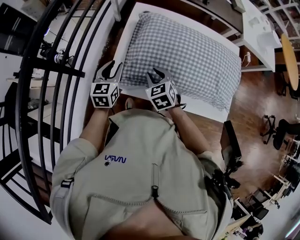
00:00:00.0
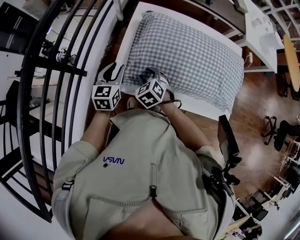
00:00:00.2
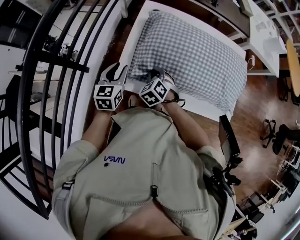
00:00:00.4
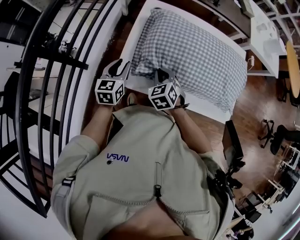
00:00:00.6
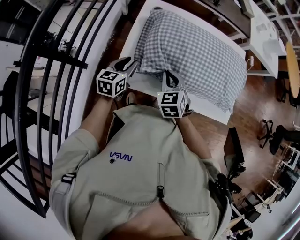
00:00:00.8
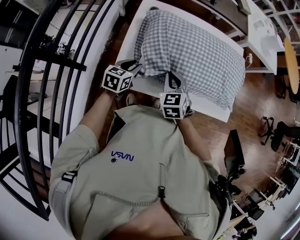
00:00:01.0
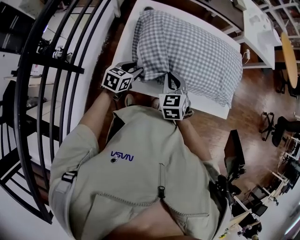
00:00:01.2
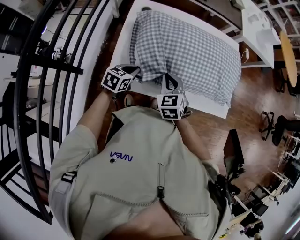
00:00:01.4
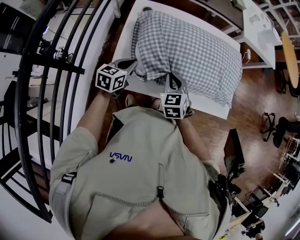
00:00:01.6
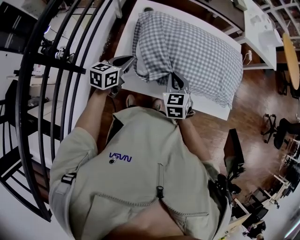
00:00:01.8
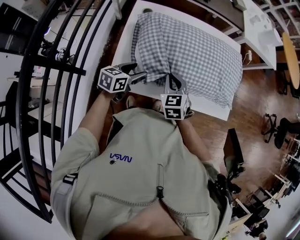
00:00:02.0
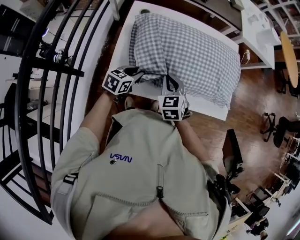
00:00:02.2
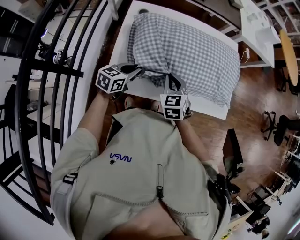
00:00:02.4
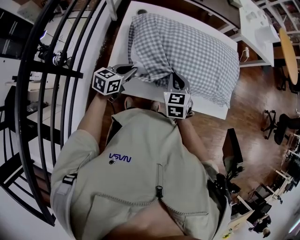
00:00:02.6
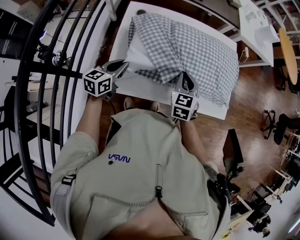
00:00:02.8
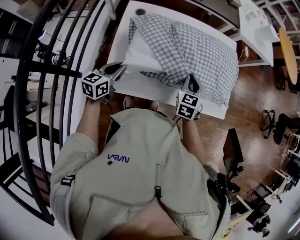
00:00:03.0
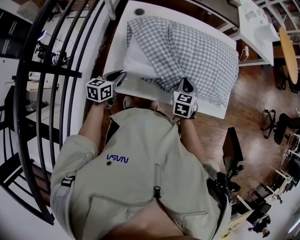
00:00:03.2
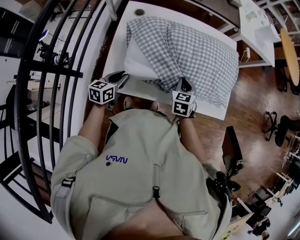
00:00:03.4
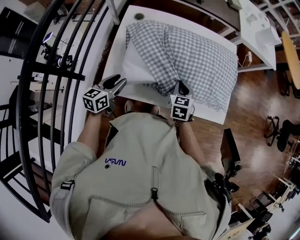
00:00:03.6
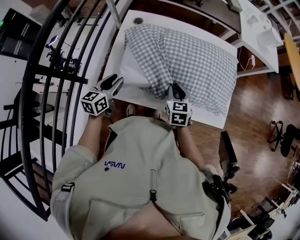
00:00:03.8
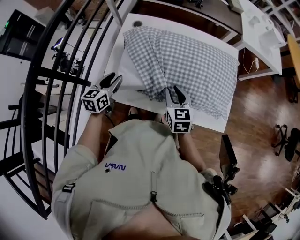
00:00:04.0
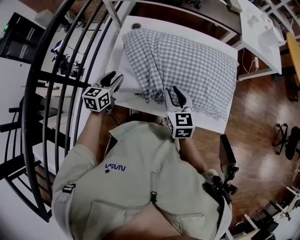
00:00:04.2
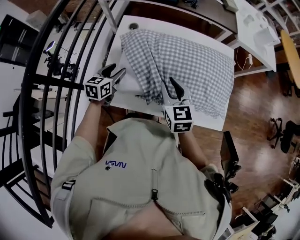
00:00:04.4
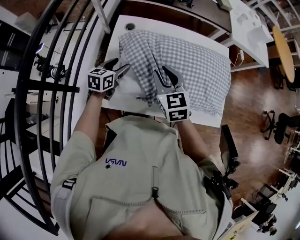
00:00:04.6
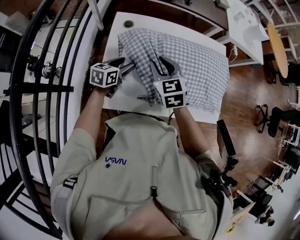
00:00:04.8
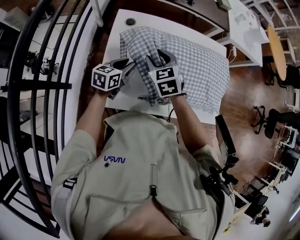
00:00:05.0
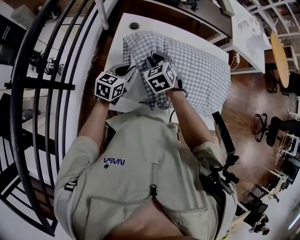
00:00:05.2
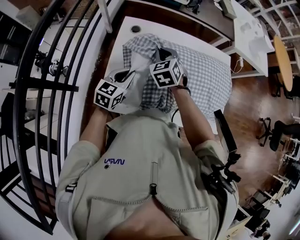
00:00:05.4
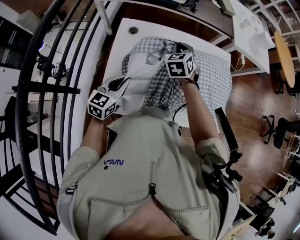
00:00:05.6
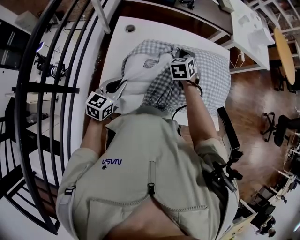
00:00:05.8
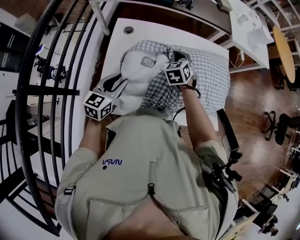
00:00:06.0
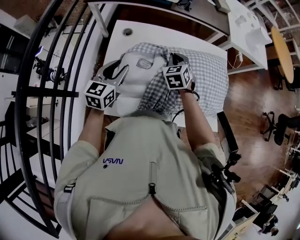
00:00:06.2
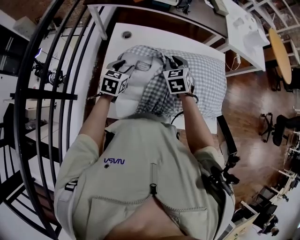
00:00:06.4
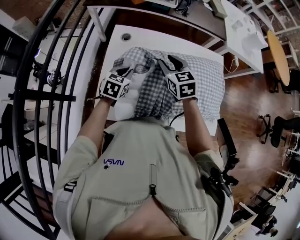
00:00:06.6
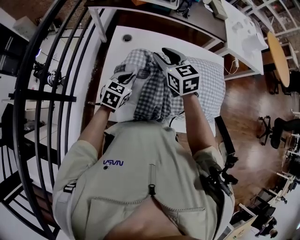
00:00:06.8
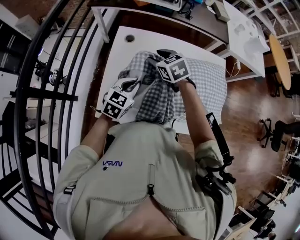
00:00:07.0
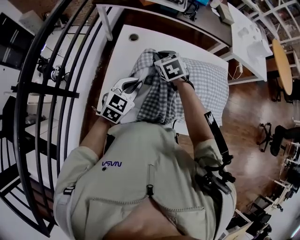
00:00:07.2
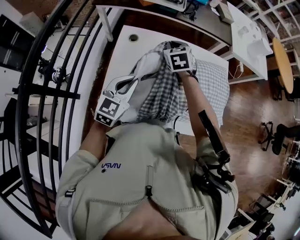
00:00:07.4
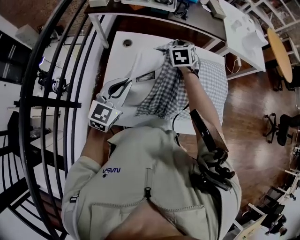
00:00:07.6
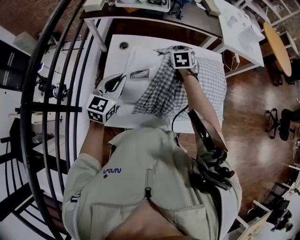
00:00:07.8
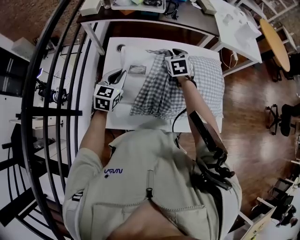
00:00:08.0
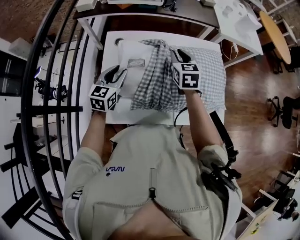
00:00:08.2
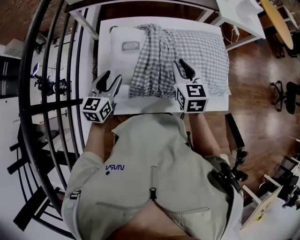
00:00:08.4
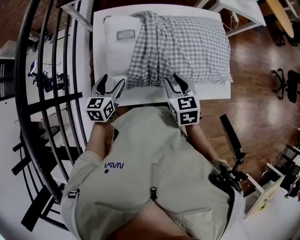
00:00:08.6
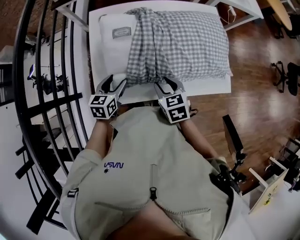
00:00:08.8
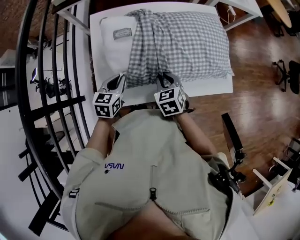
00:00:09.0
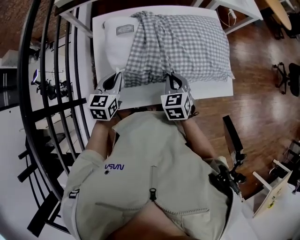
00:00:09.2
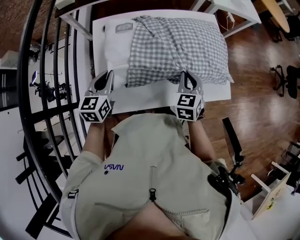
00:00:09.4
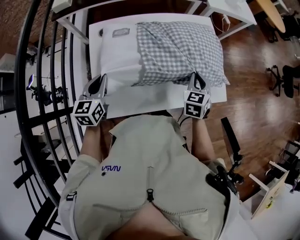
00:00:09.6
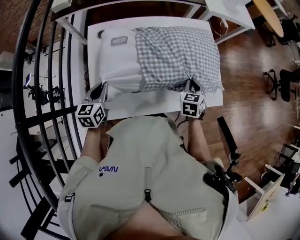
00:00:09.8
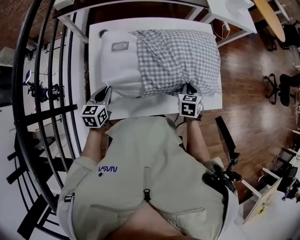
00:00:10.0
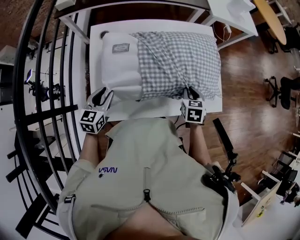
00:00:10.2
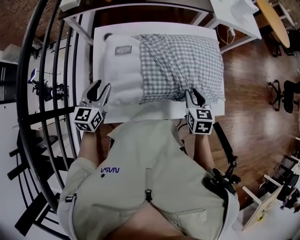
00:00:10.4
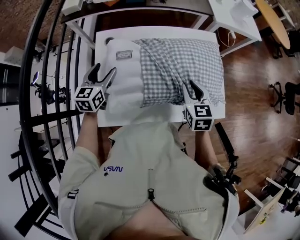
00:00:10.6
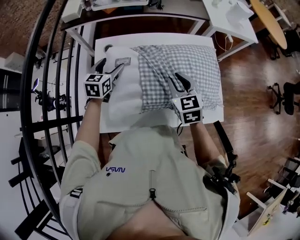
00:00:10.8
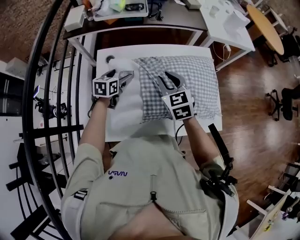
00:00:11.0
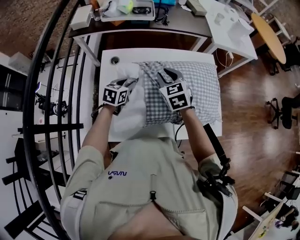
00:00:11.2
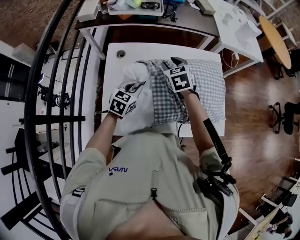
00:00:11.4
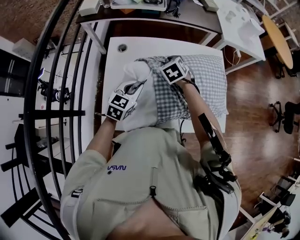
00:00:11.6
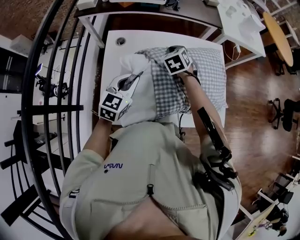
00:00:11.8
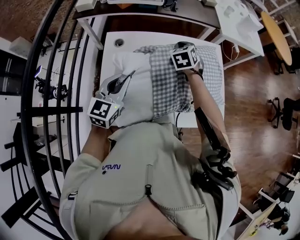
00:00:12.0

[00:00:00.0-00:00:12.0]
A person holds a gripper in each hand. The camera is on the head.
00:00:00.0 to 00:00:01.6: The left gripper rotates about 30 degrees. The right gripper goes downward and returns, about 5 cm each way, and closes.
00:00:01.6 to 00:00:03.0: The left gripper opens, then closes once more; the right gripper travels to the right by approximately 10 cm.
00:00:03.0 to 00:00:04.4: The right gripper ends up some 10 cm from where it was, swivels approximately 30 degrees, and opens its fingers; the left gripper shifts by some 5 cm, and opens.
00:00:04.4 to 00:00:06.0: The left gripper is displaced upward by roughly 5 cm, and reaches some 5 cm forward, then returns; the right gripper travels forward by approximately 20 cm, swivels about 30 degrees, and closes.
00:00:06.0 to 00:00:07.6: The left gripper travels upward by approximately 10 cm, while the right gripper goes roughly 10 cm forward and upward, and opens and closes again.
00:00:07.6 to 00:00:09.0: The left gripper travels downward by roughly 15 cm, rotates approximately 30 degrees, and opens, then closes once more. The right gripper travels backward and downward by approximately 35 cm.
00:00:09.0 to 00:00:10.4: The left gripper goes up and down, approximately 10 cm each way, reversing 2 times, and opens its fingers. The right gripper goes roughly 15 cm to the right, upward and forward.
00:00:10.4 to 00:00:12.0: The left gripper travels upward and to the right by about 10 cm, moves some 15 cm forward and comes back, and closes up. The right gripper moves forward and to the left, roughly 25 cm, swivels some 30 degrees, and closes its fingers.

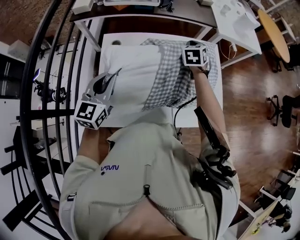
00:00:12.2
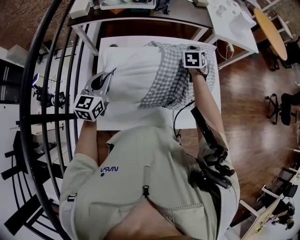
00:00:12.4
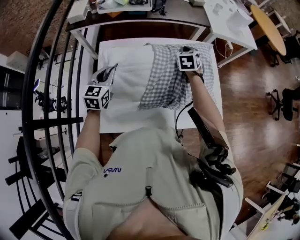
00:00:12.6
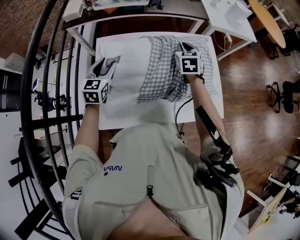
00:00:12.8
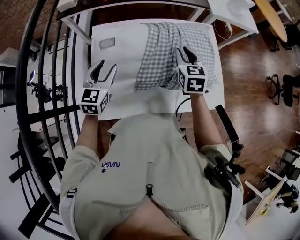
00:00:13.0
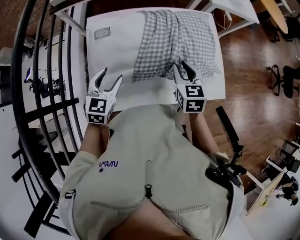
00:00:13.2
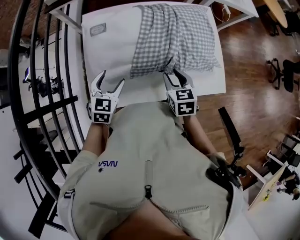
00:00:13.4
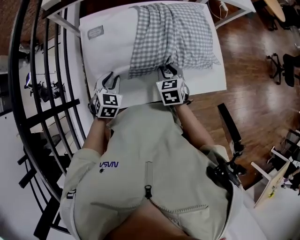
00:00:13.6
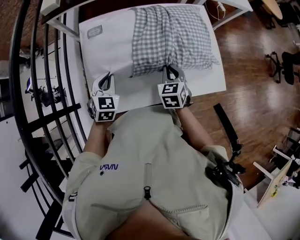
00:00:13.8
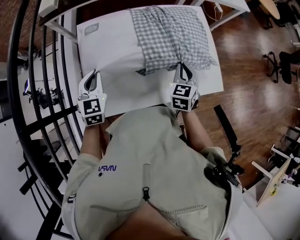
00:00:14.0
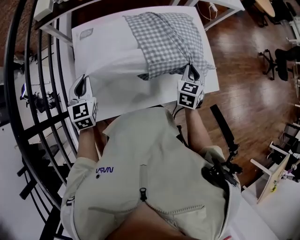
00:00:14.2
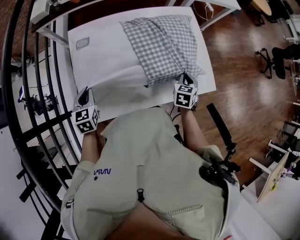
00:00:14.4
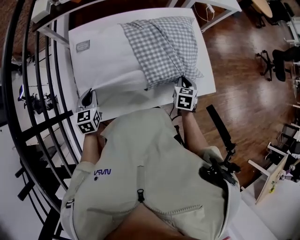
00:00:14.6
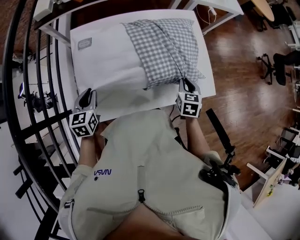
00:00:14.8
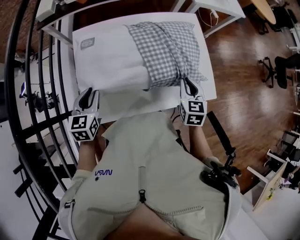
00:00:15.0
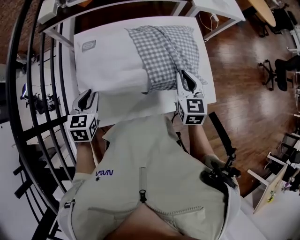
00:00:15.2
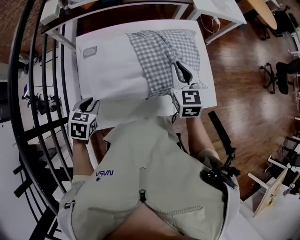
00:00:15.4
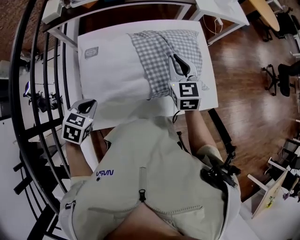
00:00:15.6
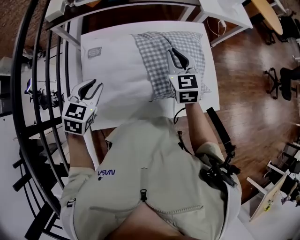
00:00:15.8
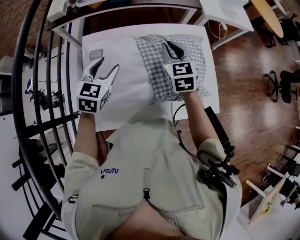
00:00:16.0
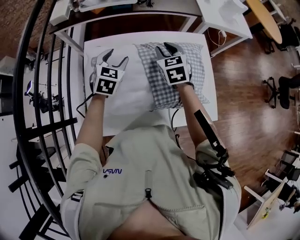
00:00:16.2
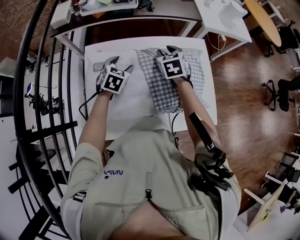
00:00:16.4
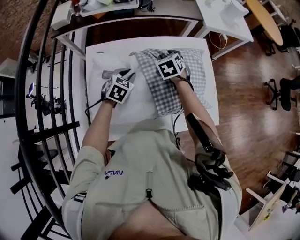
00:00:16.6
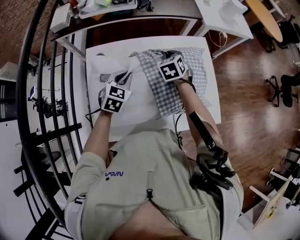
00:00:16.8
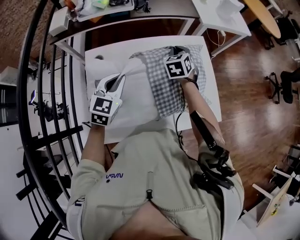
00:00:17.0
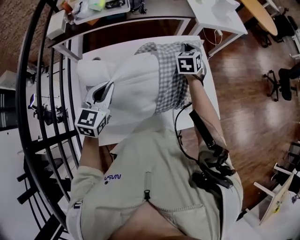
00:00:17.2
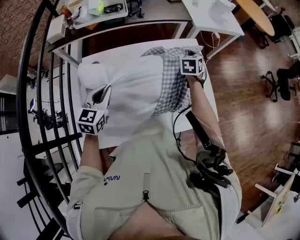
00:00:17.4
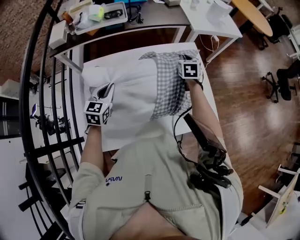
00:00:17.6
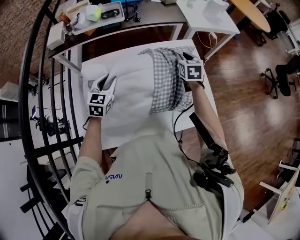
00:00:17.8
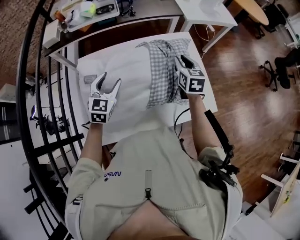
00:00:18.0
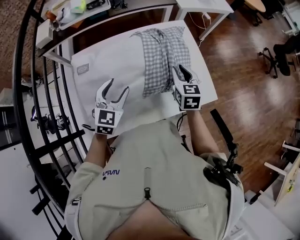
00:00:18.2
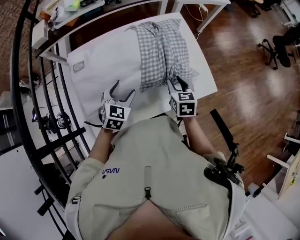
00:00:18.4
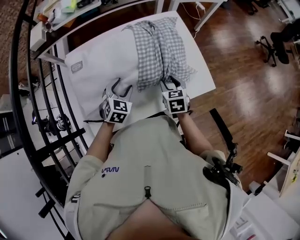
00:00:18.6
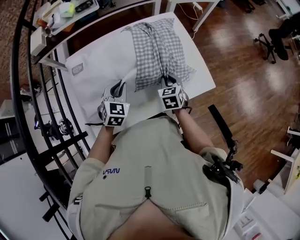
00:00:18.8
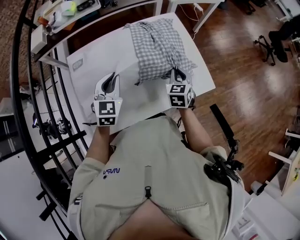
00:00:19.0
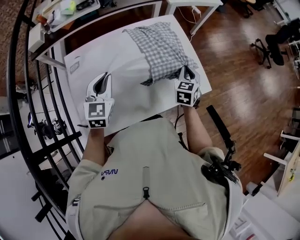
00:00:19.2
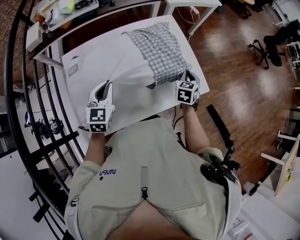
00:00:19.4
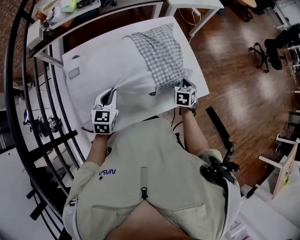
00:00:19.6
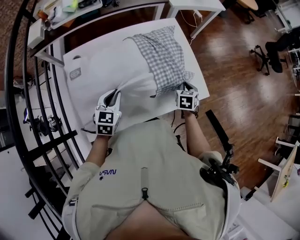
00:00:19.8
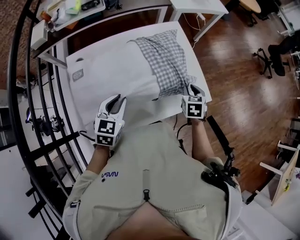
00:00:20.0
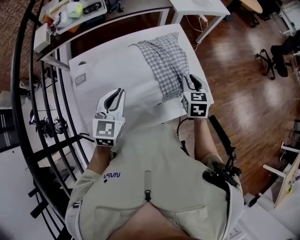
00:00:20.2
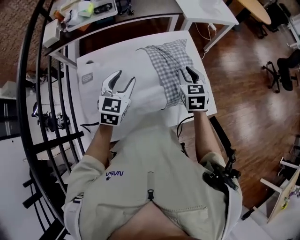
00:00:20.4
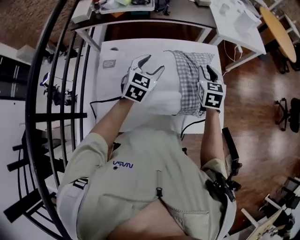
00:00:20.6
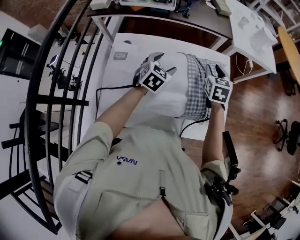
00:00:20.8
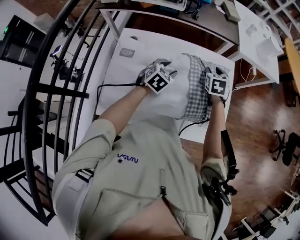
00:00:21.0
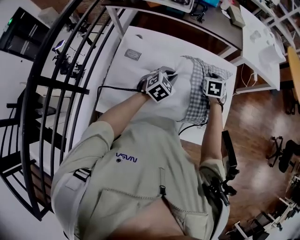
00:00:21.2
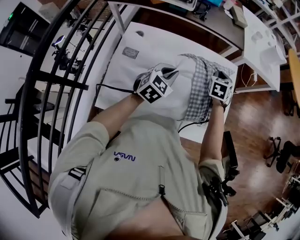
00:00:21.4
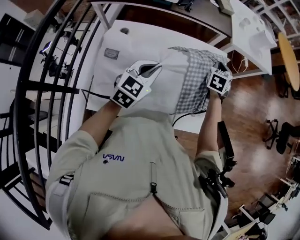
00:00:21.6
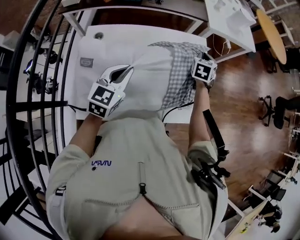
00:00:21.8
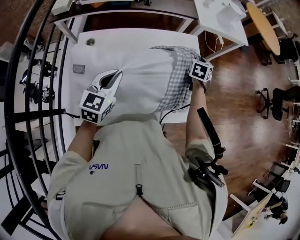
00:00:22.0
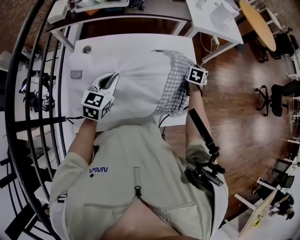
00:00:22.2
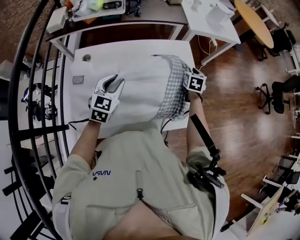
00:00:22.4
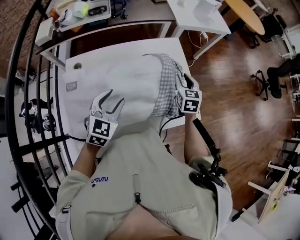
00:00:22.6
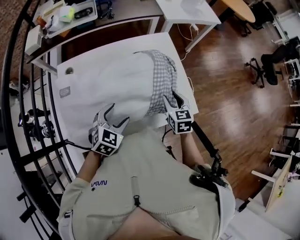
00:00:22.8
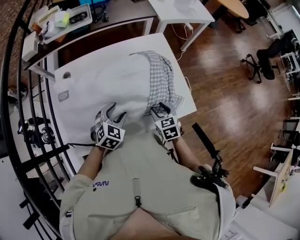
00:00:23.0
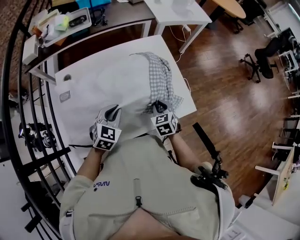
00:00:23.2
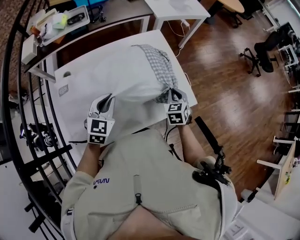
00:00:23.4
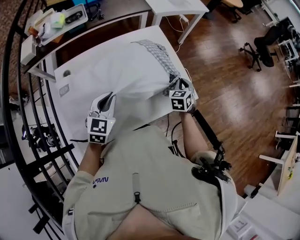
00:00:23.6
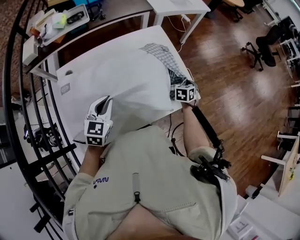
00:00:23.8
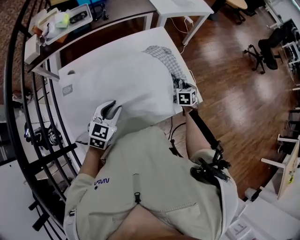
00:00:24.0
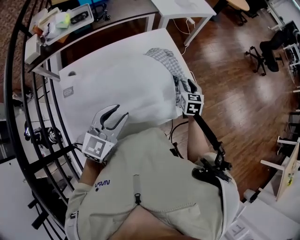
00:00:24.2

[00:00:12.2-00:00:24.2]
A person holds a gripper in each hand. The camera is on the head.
00:00:12.2 to 00:00:13.8: The right gripper shifts approximately 25 cm backward and downward, and opens and closes again. The left gripper travels downward by approximately 15 cm, turns by roughly 30 degrees, and opens and closes again.
00:00:13.8 to 00:00:15.2: The right gripper moves up and down over roughly 15 cm, changing direction 2 times. The left gripper goes up and down, roughly 10 cm each way, reversing 2 times.
00:00:15.2 to 00:00:16.6: The right gripper moves forward and to the left, about 25 cm, swivels about 30 degrees, and opens up. The left gripper shifts about 20 cm forward and to the right, swivels approximately 20 degrees, and opens and closes again.
00:00:16.6 to 00:00:18.2: The right gripper shifts approximately 20 cm to the right and backward, swivels roughly 30 degrees, and closes, then opens again, while the left gripper is displaced backward and upward by some 15 cm, swivels some 20 degrees, and opens up.
00:00:18.2 to 00:00:19.8: The right gripper moves up and down over about 15 cm, changing direction 2 times, and turns by roughly 30 degrees, while the left gripper goes up and down, some 15 cm each way, reversing 2 times, and closes.
00:00:19.8 to 00:00:21.2: The right gripper moves forward and to the left, approximately 25 cm, rotates roughly 30 degrees, and opens and closes again. The left gripper moves forward, approximately 15 cm, and opens, then closes once more.
00:00:21.2 to 00:00:22.6: The right gripper shifts some 15 cm to the right and backward, and swivels roughly 30 degrees. The left gripper goes some 15 cm backward and upward, and opens.
00:00:22.6 to 00:00:24.2: The left gripper goes downward and returns, about 10 cm each way, swivels approximately 20 degrees, and closes, then opens again, while the right gripper moves up and down over about 15 cm, changing direction 3 times, and closes, then opens again.
